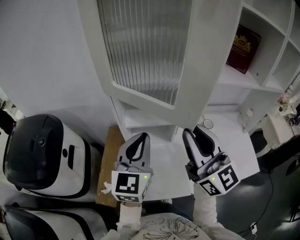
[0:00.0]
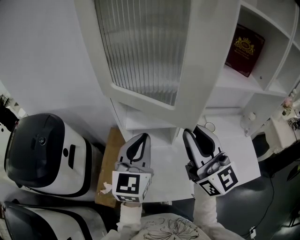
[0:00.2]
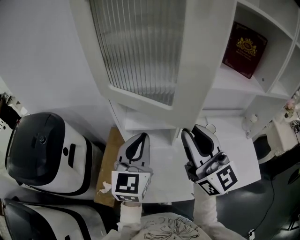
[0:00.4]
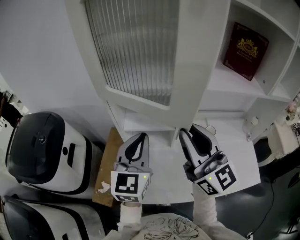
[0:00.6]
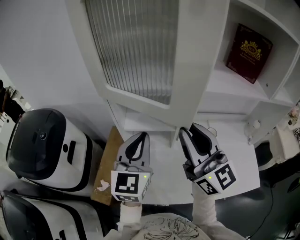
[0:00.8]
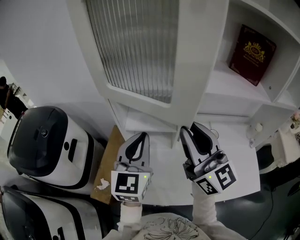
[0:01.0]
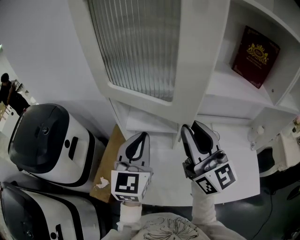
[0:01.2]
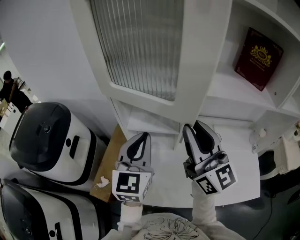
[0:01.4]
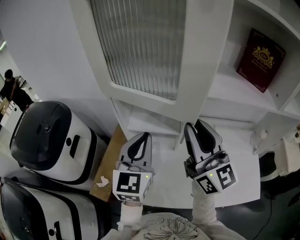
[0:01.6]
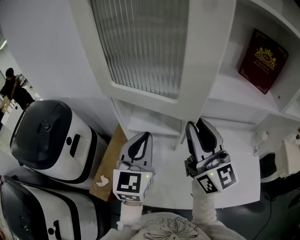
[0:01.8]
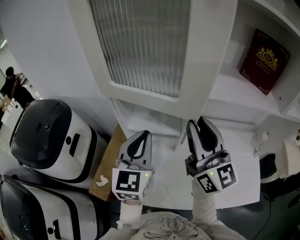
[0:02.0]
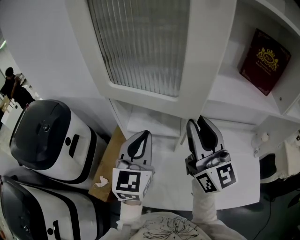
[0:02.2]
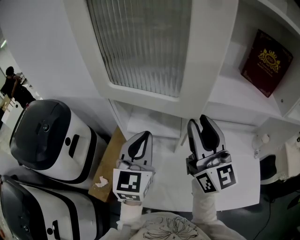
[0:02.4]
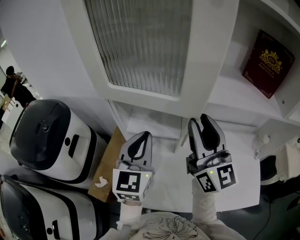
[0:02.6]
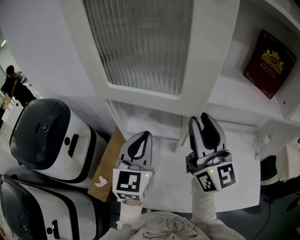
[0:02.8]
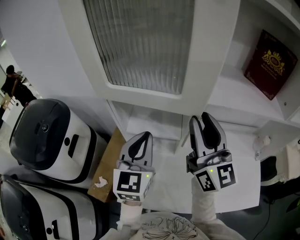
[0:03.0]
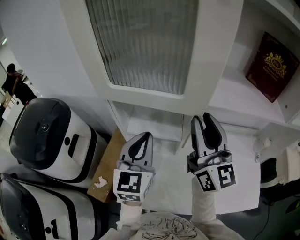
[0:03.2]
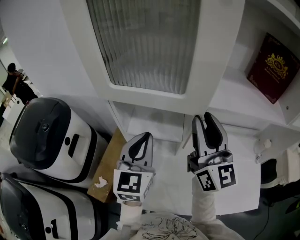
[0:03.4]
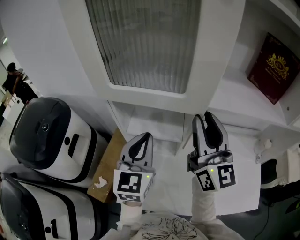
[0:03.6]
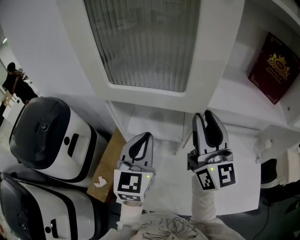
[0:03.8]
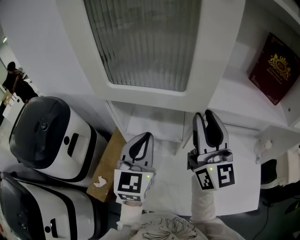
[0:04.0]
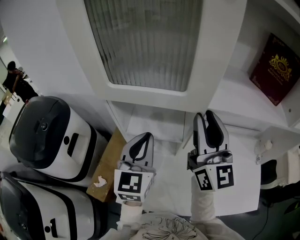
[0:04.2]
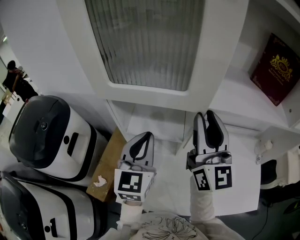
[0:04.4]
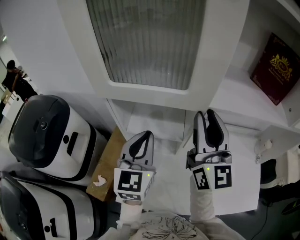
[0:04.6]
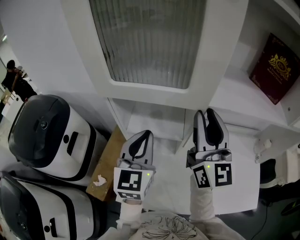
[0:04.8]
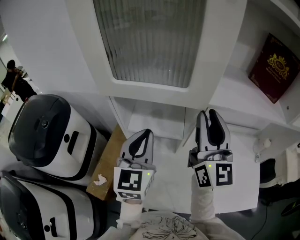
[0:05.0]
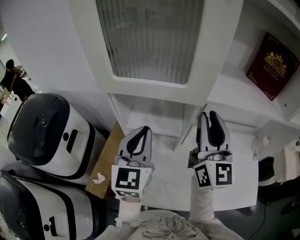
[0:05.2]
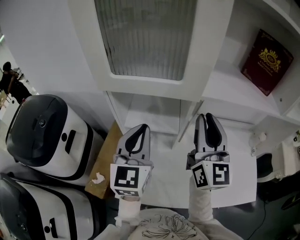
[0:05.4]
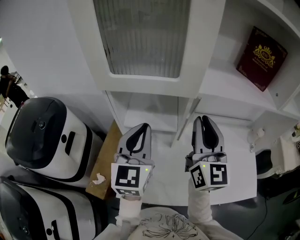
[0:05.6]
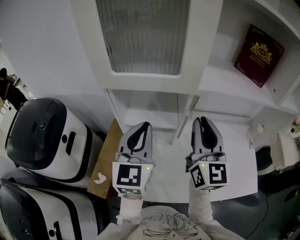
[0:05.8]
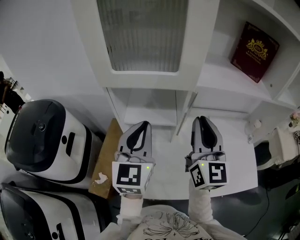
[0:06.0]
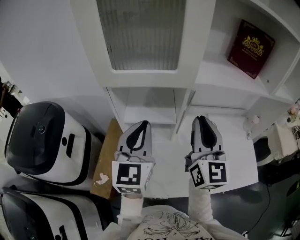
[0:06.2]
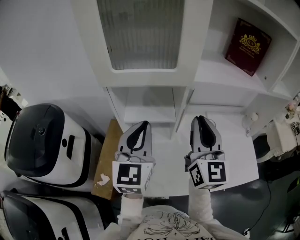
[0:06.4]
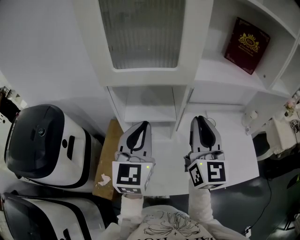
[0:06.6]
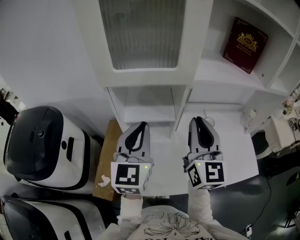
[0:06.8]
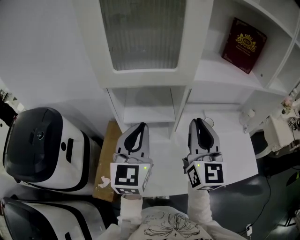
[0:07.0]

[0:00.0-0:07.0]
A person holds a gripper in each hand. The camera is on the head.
0:00.0 to 0:01.4: The right gripper moves forward, some 5 cm.
0:01.4 to 0:02.8: The right gripper is displaced forward by about 5 cm.
0:02.8 to 0:04.2: The grippers stay close to where they were, moving slightly.
0:04.2 to 0:05.6: The right gripper is displaced backward by about 5 cm.
0:05.6 to 0:07.0: The right gripper travels backward by some 5 cm.

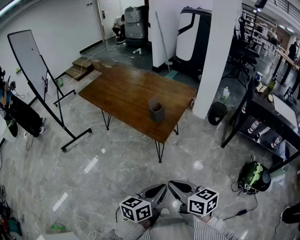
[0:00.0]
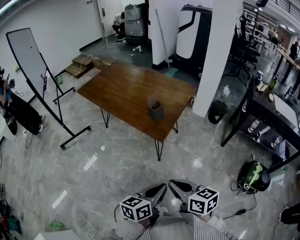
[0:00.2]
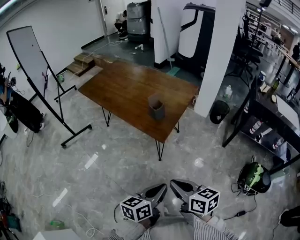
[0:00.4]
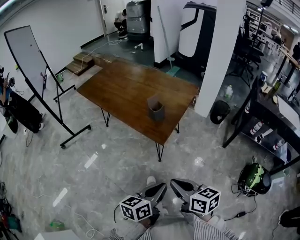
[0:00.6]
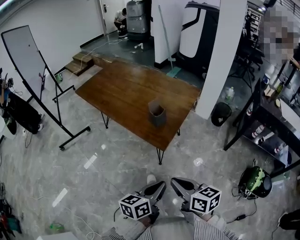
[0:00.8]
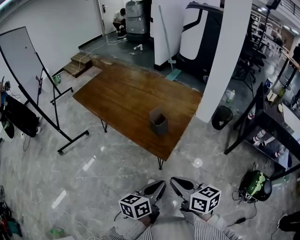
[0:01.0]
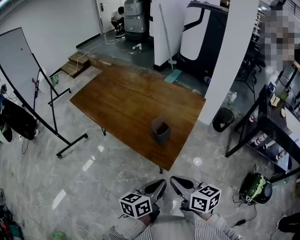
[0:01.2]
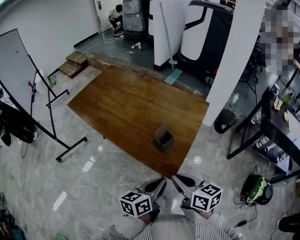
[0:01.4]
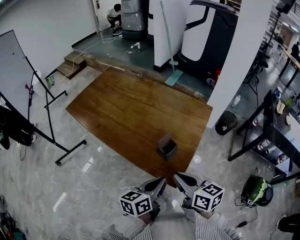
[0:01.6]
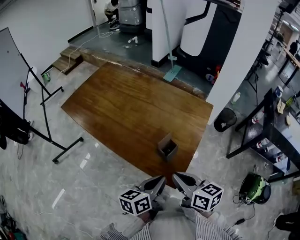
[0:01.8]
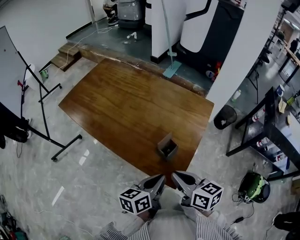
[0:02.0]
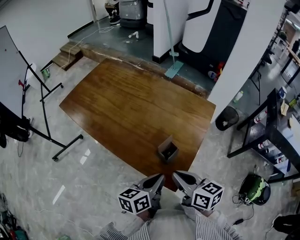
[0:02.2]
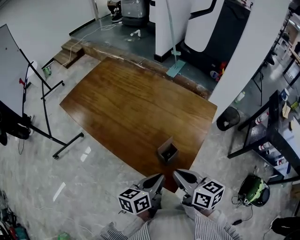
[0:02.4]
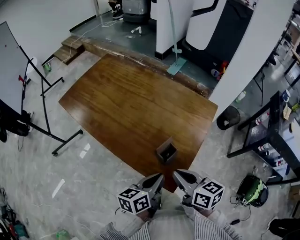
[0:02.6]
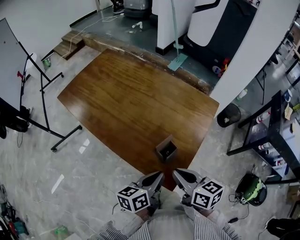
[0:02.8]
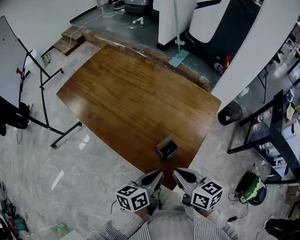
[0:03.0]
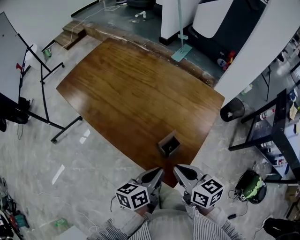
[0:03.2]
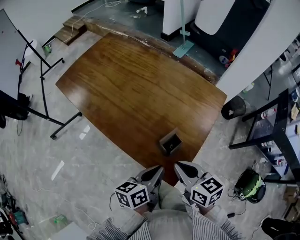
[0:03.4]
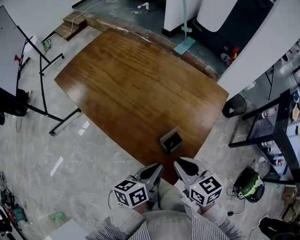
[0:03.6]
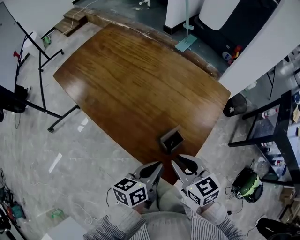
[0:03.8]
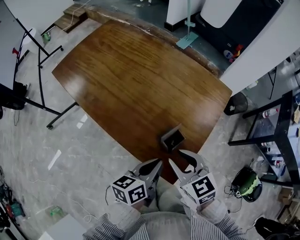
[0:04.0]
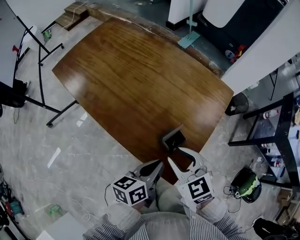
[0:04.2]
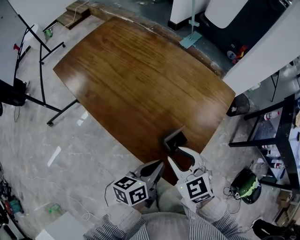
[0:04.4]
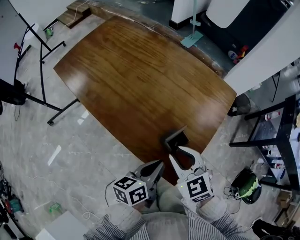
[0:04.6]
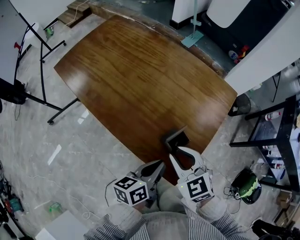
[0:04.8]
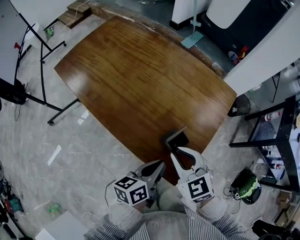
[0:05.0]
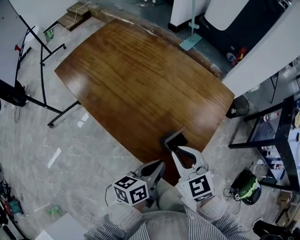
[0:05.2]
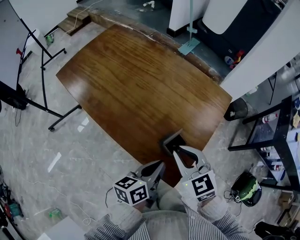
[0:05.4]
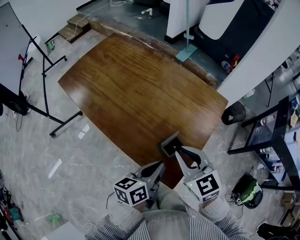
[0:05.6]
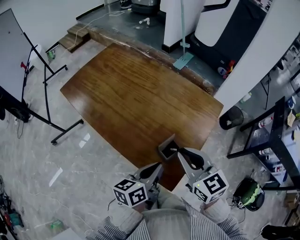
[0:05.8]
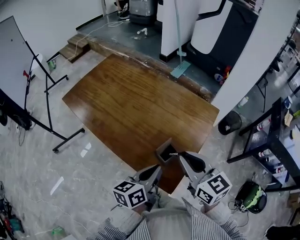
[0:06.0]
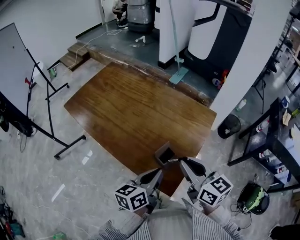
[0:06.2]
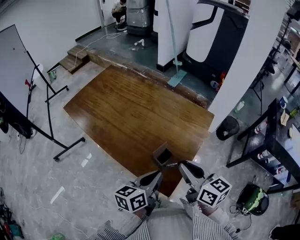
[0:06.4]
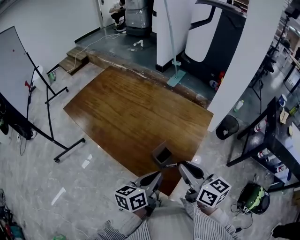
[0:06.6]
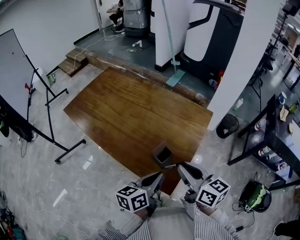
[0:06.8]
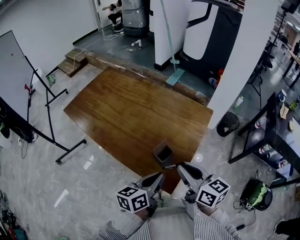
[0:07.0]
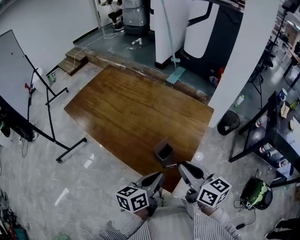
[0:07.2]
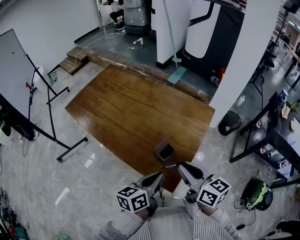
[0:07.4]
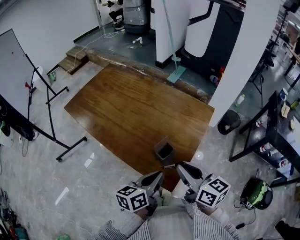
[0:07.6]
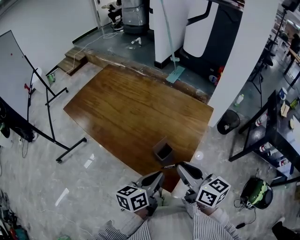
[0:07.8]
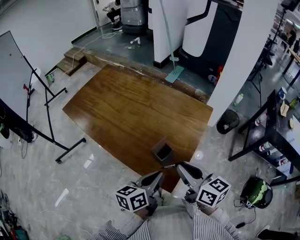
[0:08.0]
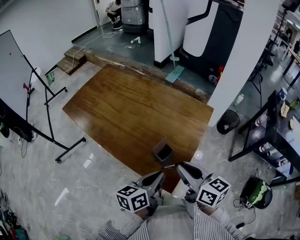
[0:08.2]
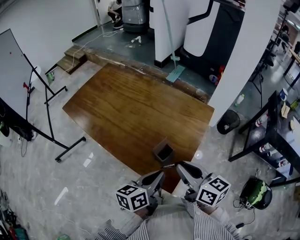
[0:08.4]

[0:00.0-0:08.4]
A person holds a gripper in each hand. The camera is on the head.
0:00.0 to 0:01.4: The grippers both shift forward by about 30 cm.
0:01.4 to 0:02.8: Both grippers travel together forward, approximately 10 cm.
0:02.8 to 0:04.2: The right gripper moves some 5 cm, rotates around the line of its fingers by about 40 degrees, counterclockwise from behind, and opens up.
0:04.2 to 0:05.6: The right gripper shifts approximately 5 cm upward, and closes.
0:05.6 to 0:07.0: The right gripper goes approximately 10 cm backward and to the right, and changes its angle by roughly 30 degrees. Meanwhile the left gripper shifts by approximately 5 cm.
0:07.0 to 0:08.4: Both grippers stay about where they are.

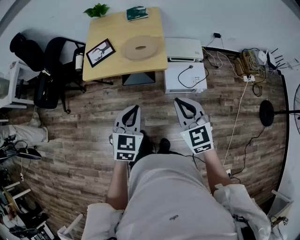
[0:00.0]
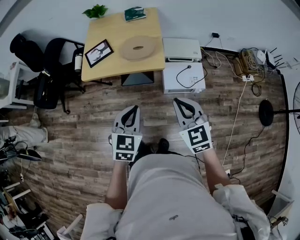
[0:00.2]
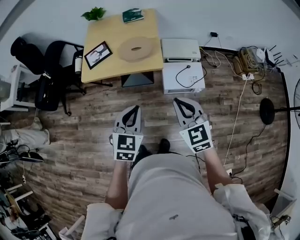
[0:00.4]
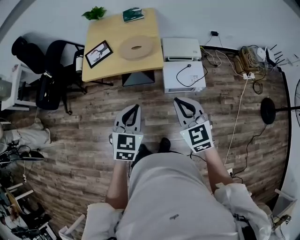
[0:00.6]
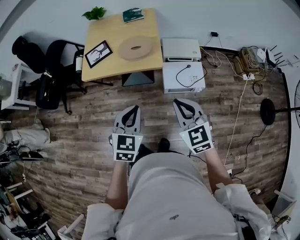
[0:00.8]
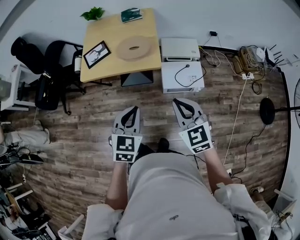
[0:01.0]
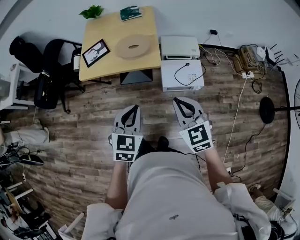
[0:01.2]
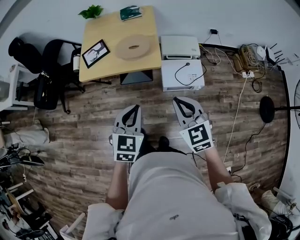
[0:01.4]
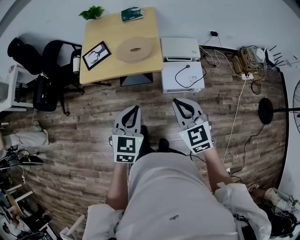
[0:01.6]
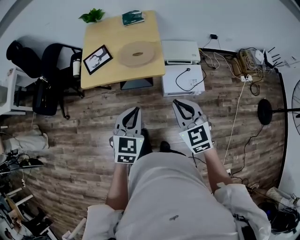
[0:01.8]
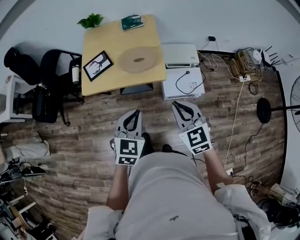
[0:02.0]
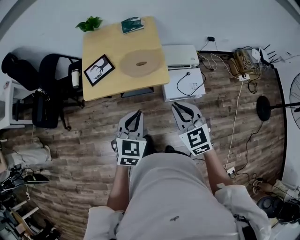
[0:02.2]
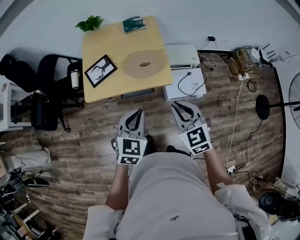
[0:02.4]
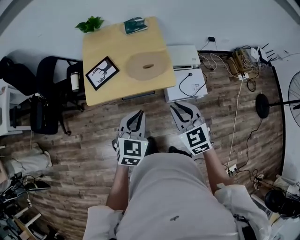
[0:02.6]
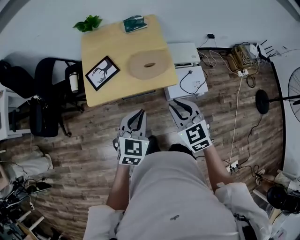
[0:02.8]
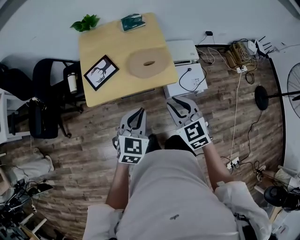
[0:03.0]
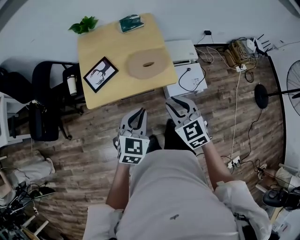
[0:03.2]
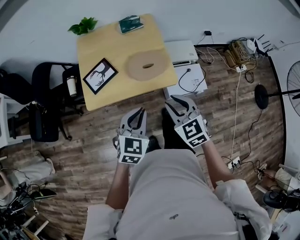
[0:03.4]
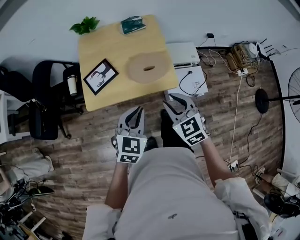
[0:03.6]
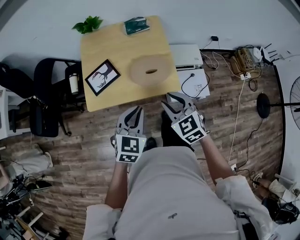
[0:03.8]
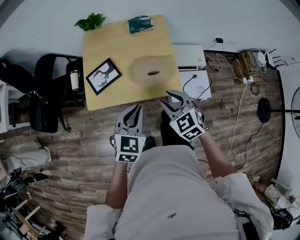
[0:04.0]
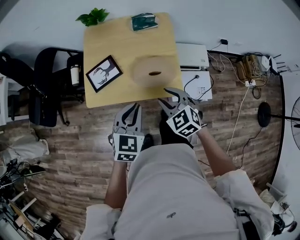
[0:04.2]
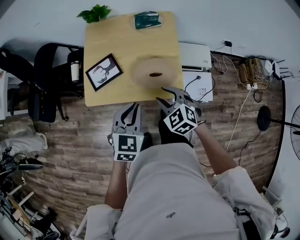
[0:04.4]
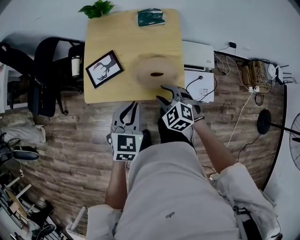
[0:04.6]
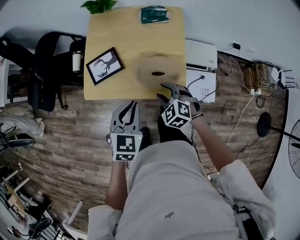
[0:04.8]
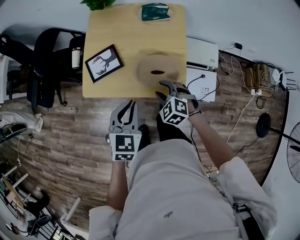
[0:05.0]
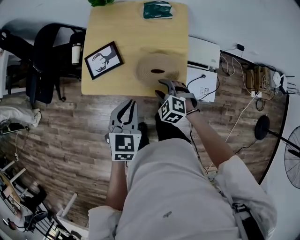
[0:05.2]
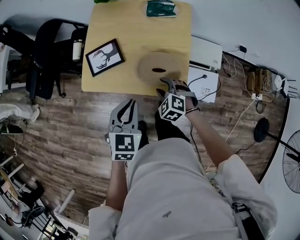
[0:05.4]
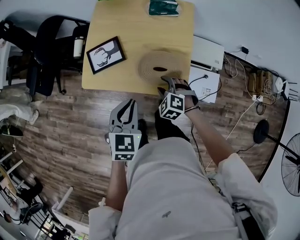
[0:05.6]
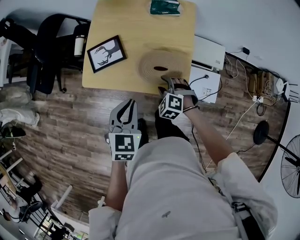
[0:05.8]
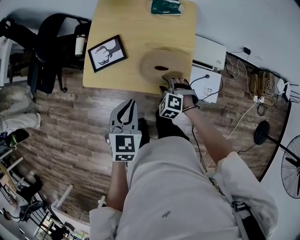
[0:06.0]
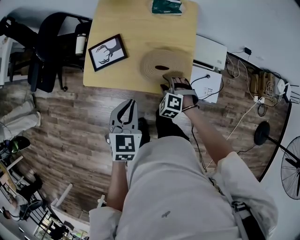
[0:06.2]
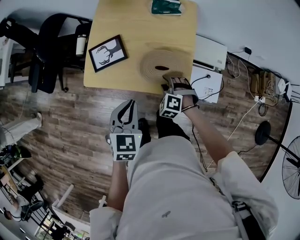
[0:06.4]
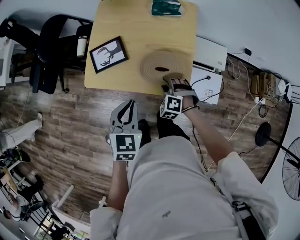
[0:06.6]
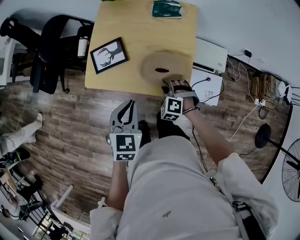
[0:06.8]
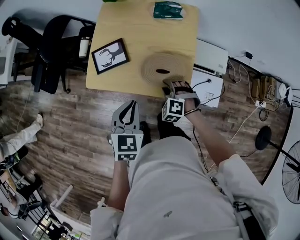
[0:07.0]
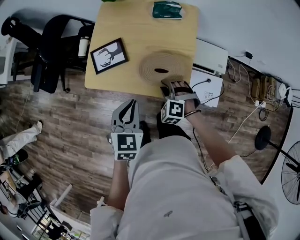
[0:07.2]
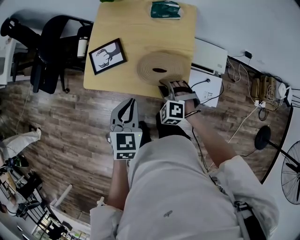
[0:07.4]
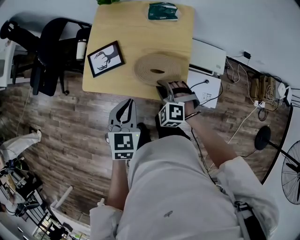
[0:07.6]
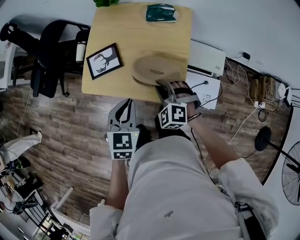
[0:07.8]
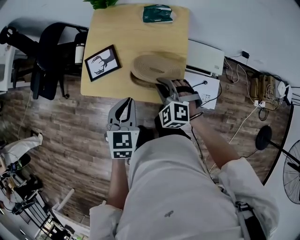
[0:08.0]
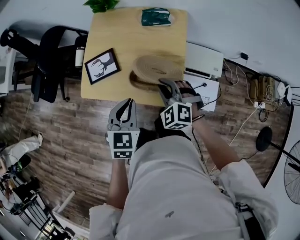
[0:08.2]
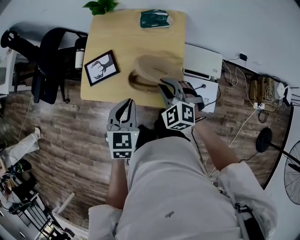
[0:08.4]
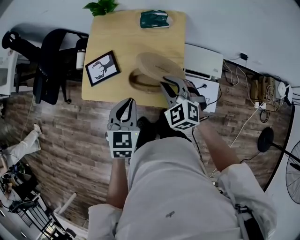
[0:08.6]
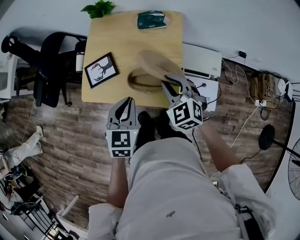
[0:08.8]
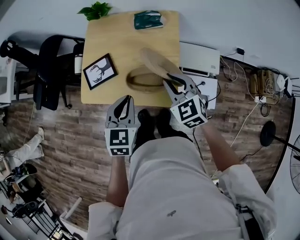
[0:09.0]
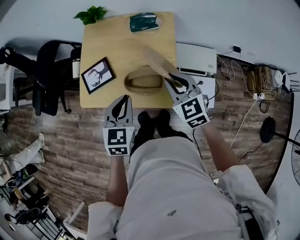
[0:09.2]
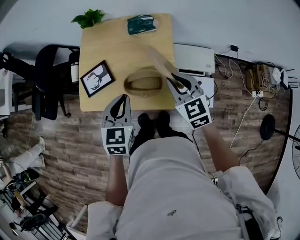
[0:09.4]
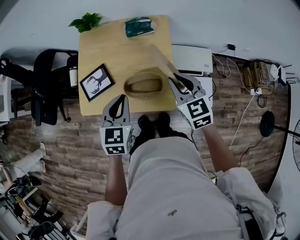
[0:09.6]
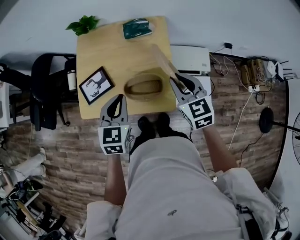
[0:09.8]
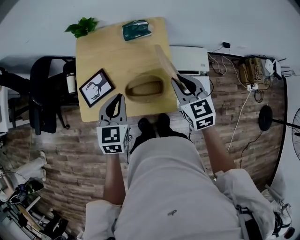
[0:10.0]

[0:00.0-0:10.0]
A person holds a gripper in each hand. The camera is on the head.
0:00.0 to 0:01.4: The grippers make only small movements.
0:01.4 to 0:02.8: The right gripper travels to the left and forward by some 20 cm. The left gripper heads forward and to the left, covering some 20 cm.
0:02.8 to 0:04.2: The left gripper shifts approximately 10 cm forward. The right gripper is displaced forward and downward by some 15 cm, and opens its fingers.
0:04.2 to 0:05.8: The right gripper travels downward by approximately 15 cm, and changes its angle by roughly 30 degrees.
0:05.8 to 0:07.2: The right gripper closes up.
0:07.2 to 0:08.6: The right gripper goes approximately 15 cm upward and to the right, and changes its angle by about 30 degrees; the left gripper goes about 5 cm to the right.
0:08.6 to 0:10.0: The right gripper shifts about 10 cm to the right and upward, and changes its angle by about 40 degrees, while the left gripper shifts approximately 10 cm forward.
